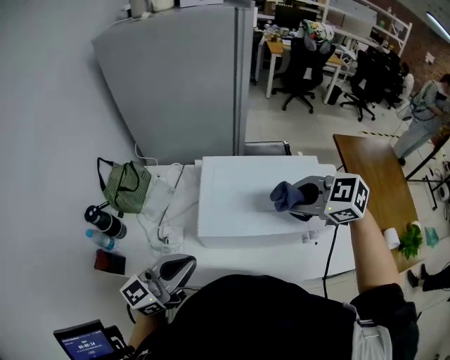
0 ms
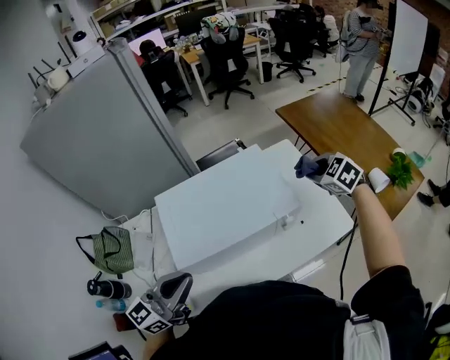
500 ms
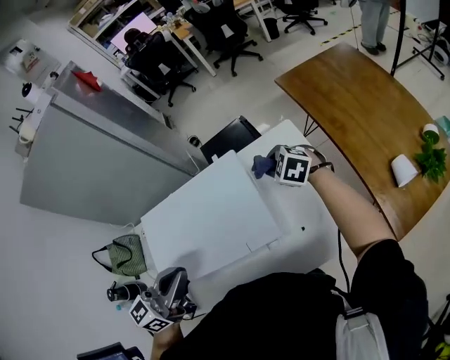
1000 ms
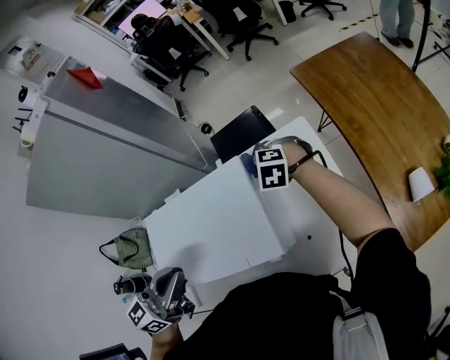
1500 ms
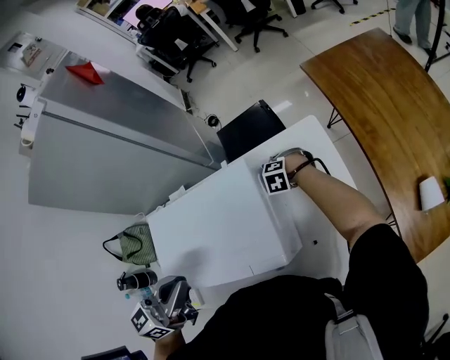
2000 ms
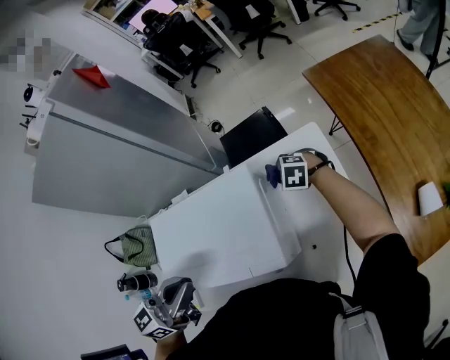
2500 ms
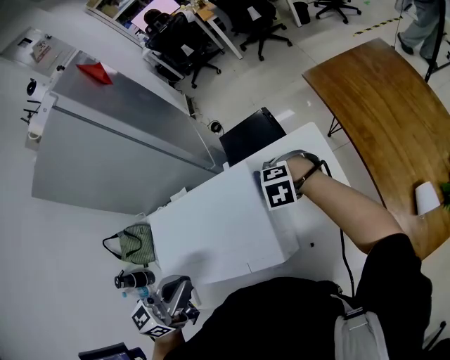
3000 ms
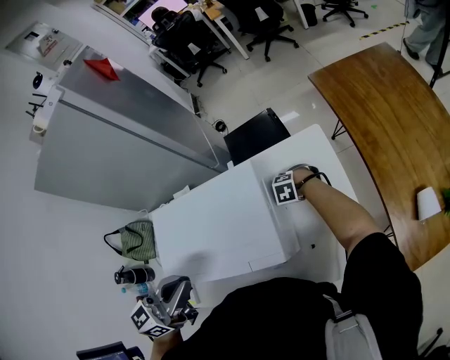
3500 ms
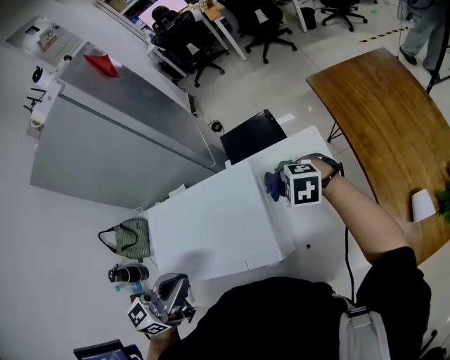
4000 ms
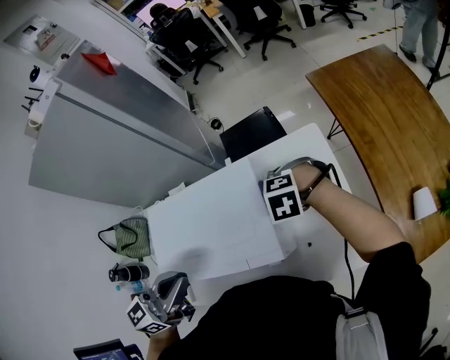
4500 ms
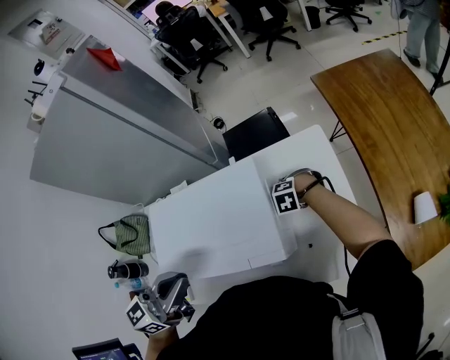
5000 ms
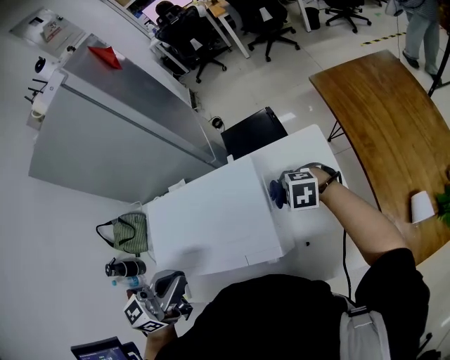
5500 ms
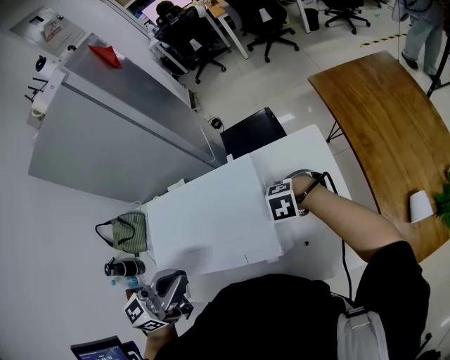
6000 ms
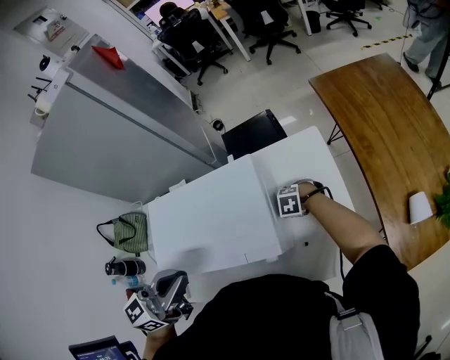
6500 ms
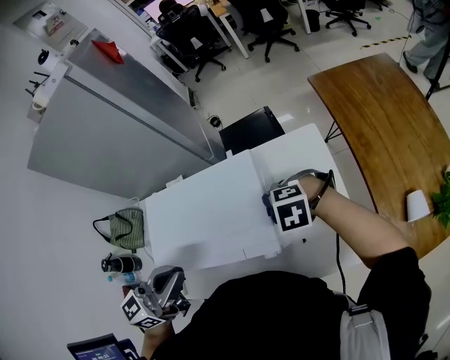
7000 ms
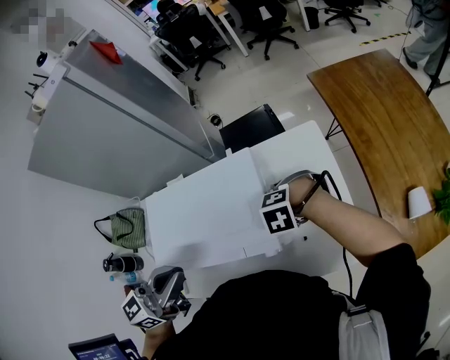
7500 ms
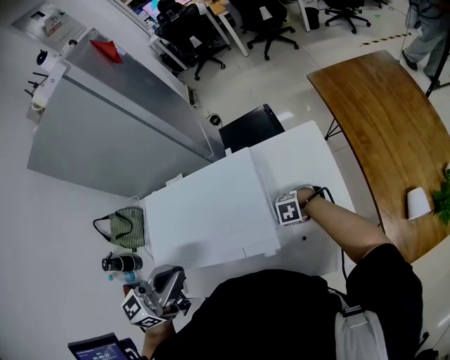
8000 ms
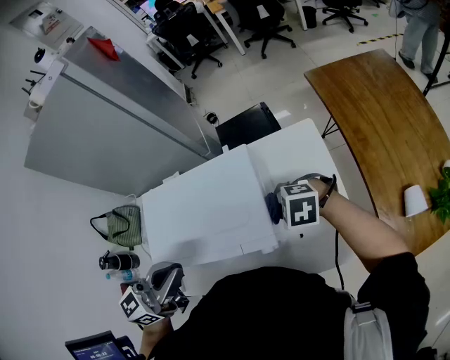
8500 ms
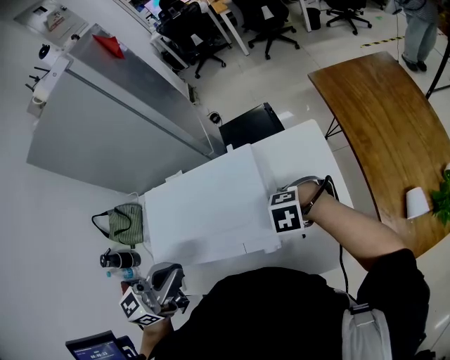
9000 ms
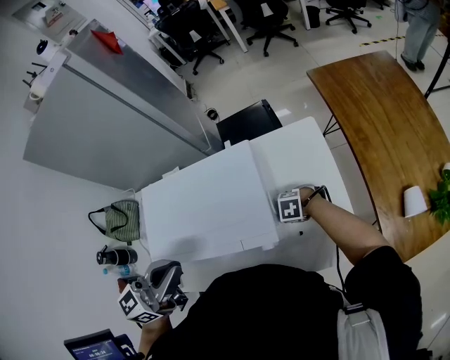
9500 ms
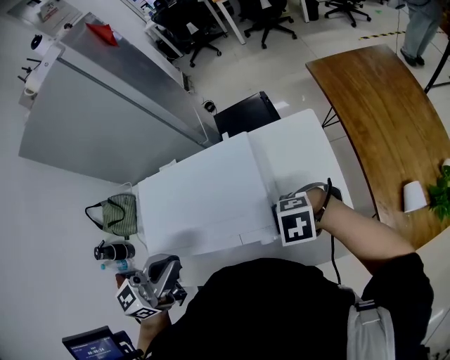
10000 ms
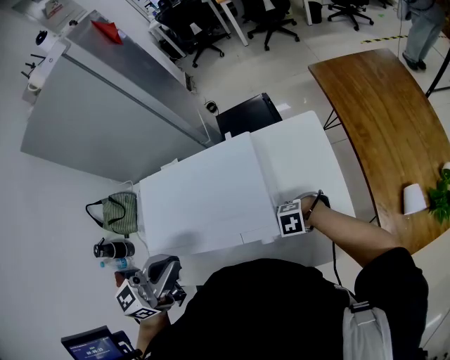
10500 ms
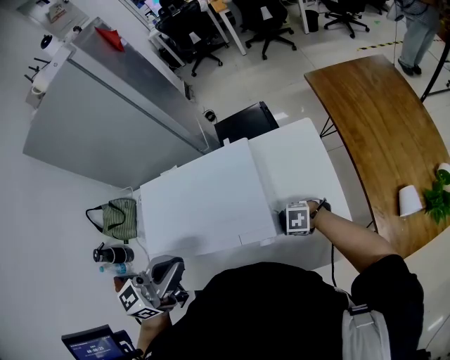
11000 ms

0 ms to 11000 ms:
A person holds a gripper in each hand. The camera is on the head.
0 ms to 2000 ms: The left gripper changes place by approximately 25 cm.

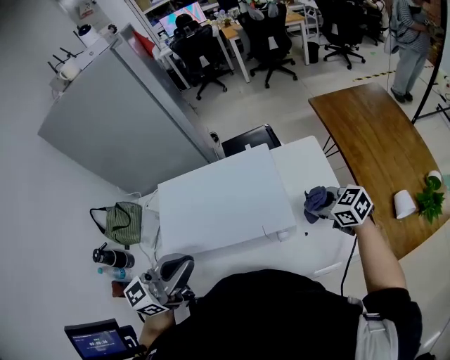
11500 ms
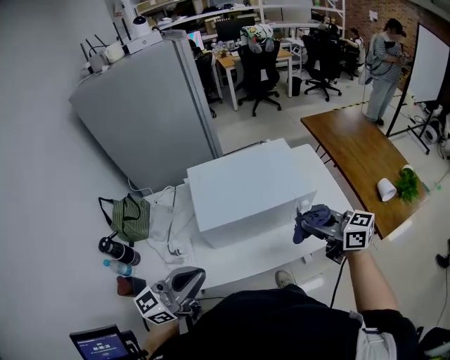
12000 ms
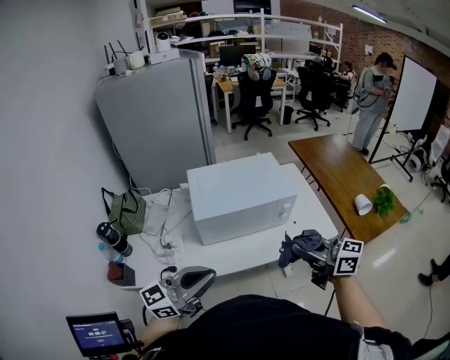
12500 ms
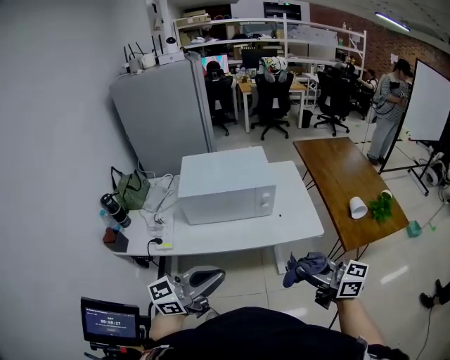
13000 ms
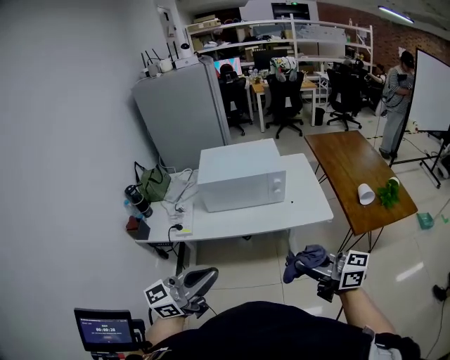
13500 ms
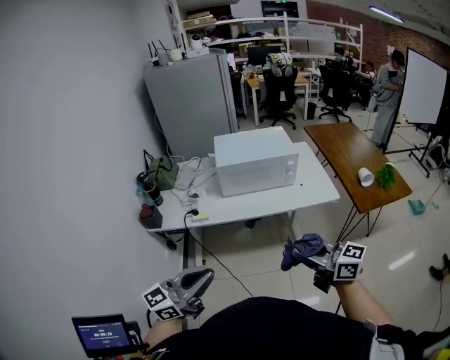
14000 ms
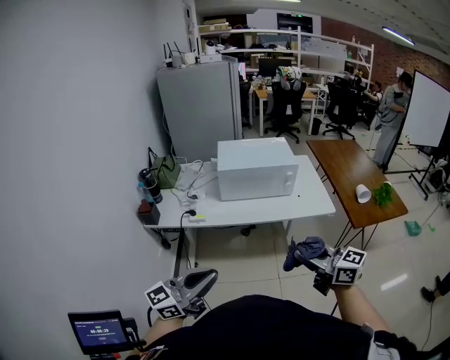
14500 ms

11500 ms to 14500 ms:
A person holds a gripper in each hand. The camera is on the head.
11500 ms to 13000 ms: The left gripper ends up about 35 cm from where it was.
13000 ms to 14500 ms: The left gripper shifts by about 25 cm.

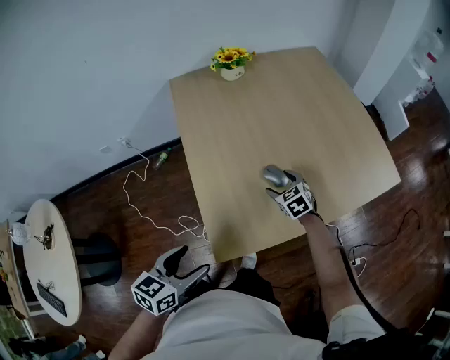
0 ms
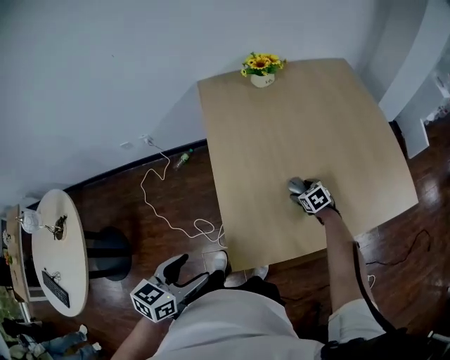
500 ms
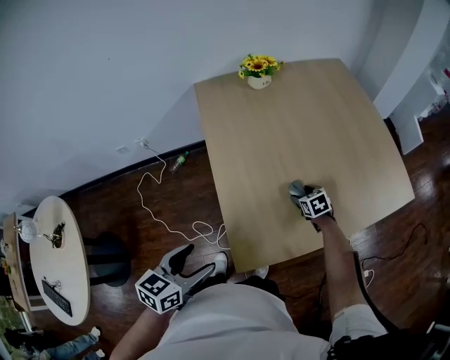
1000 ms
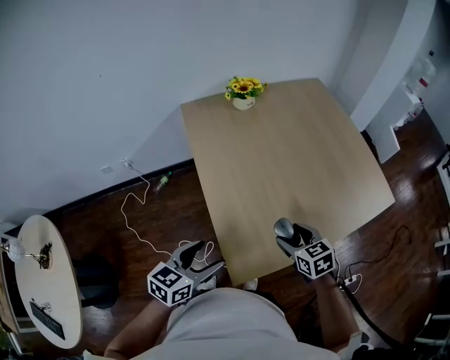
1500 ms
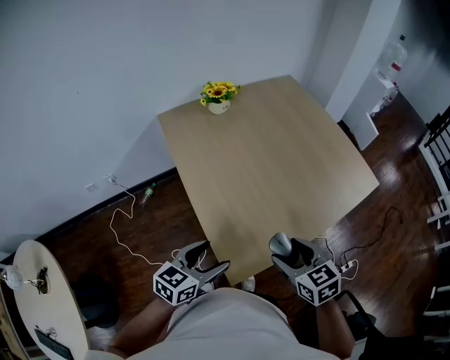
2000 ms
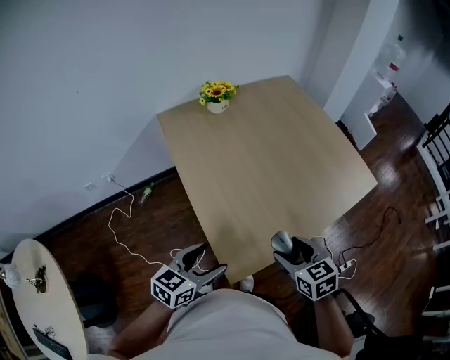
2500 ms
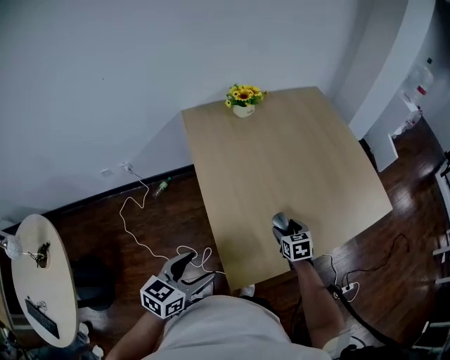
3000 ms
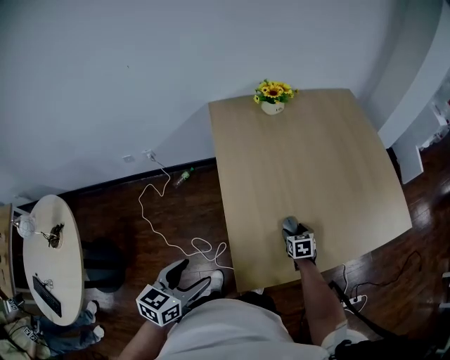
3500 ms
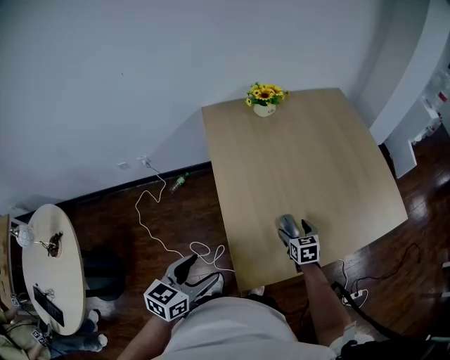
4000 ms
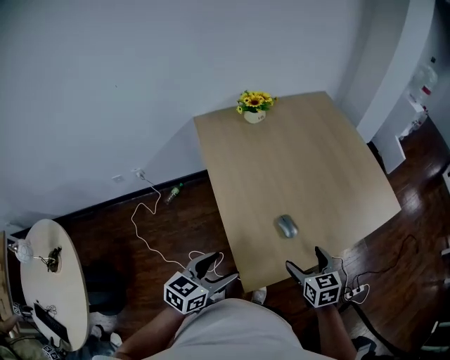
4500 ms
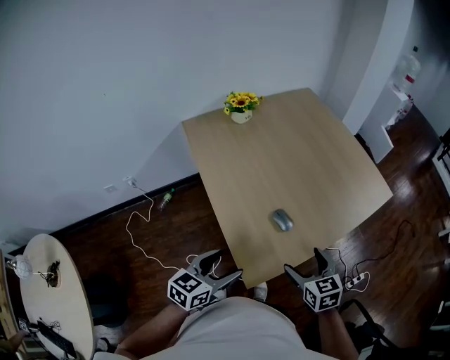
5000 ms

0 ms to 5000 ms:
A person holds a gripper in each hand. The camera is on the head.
0 ms to 2500 ms: The right gripper moves upward and backward, roughly 25 cm, and changes its angle by approximately 30 degrees, while the left gripper heads forward, covering approximately 5 cm, and rotates approximately 20 degrees.
2500 ms to 5000 ms: The left gripper moves approximately 10 cm to the left and comes back. Meanwhile the right gripper goes downward and returns, about 25 cm each way, and opens.

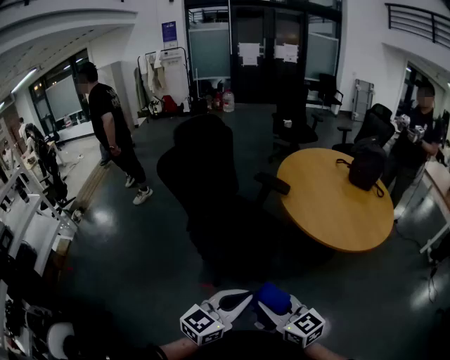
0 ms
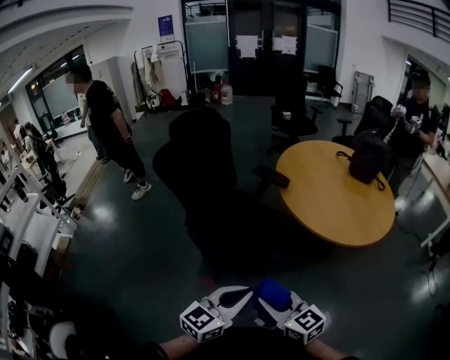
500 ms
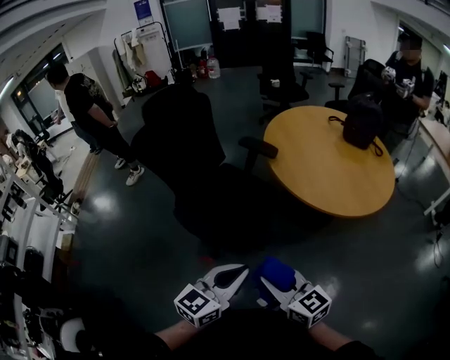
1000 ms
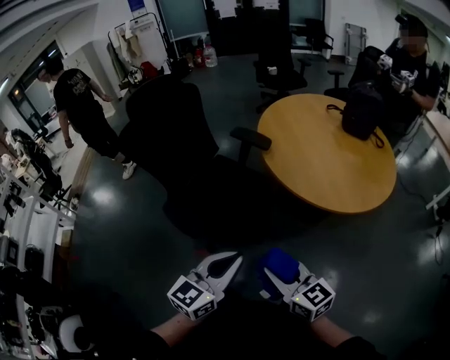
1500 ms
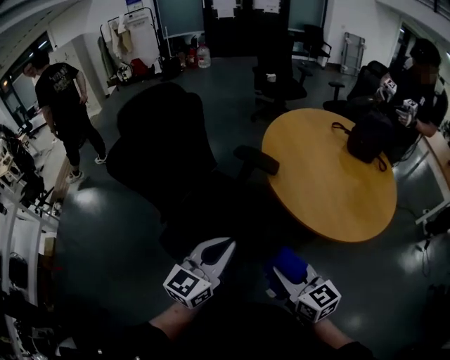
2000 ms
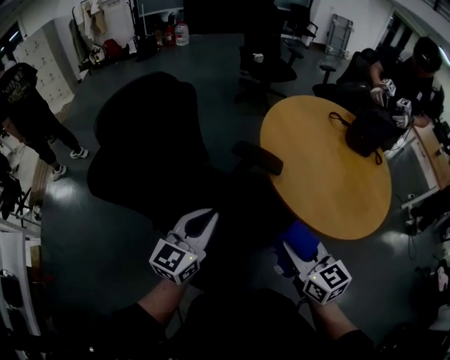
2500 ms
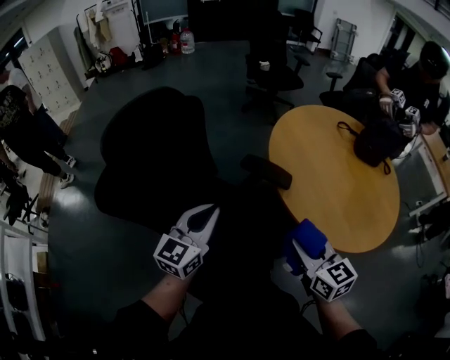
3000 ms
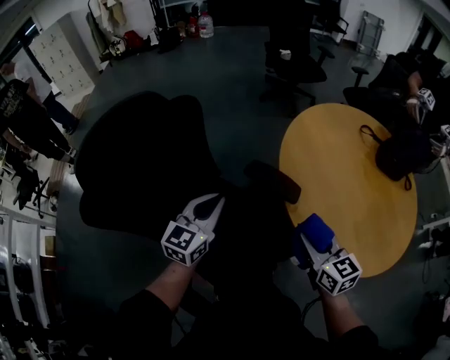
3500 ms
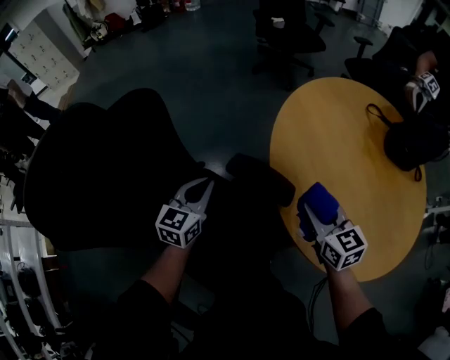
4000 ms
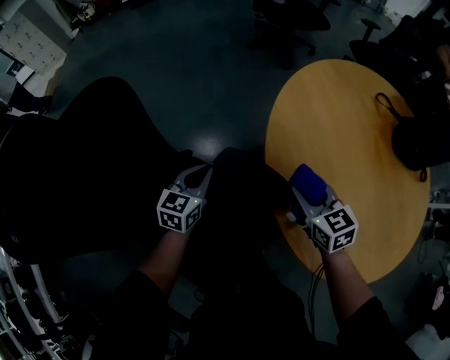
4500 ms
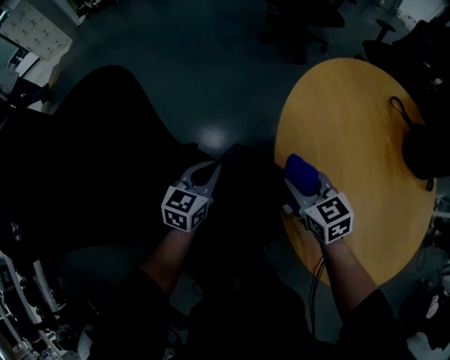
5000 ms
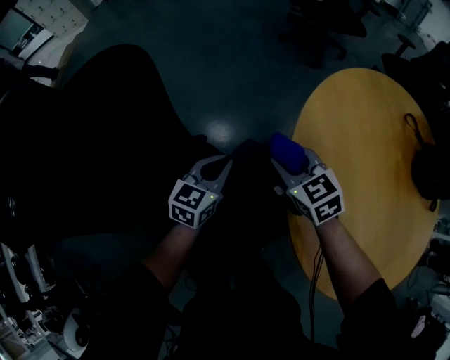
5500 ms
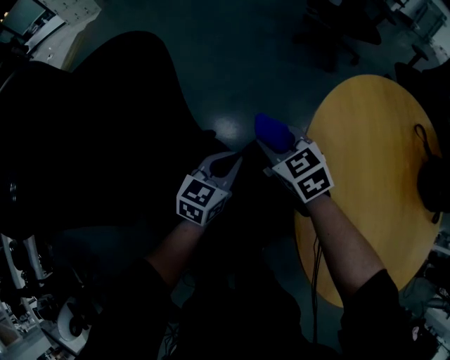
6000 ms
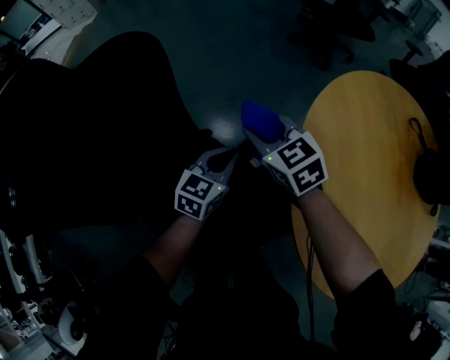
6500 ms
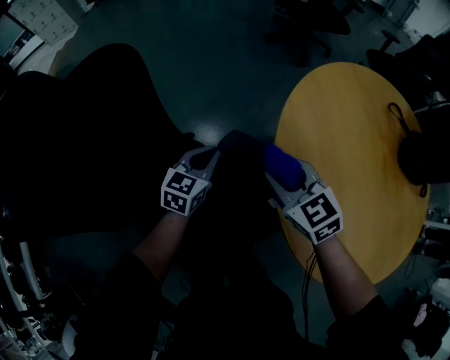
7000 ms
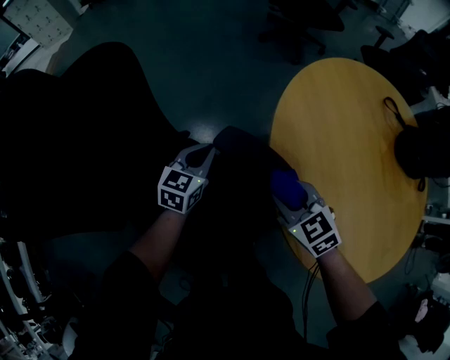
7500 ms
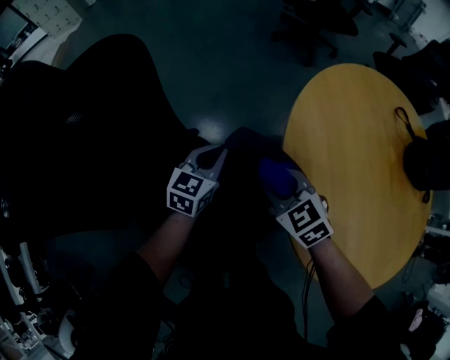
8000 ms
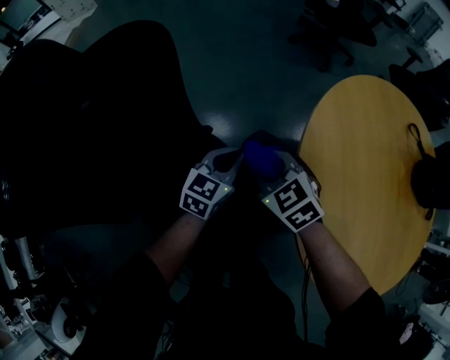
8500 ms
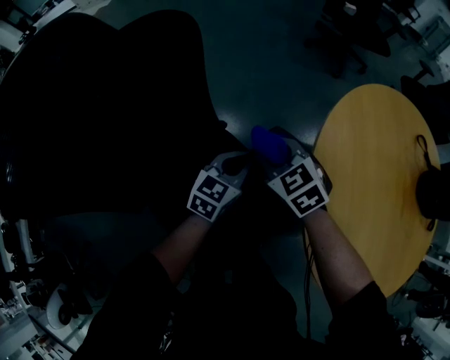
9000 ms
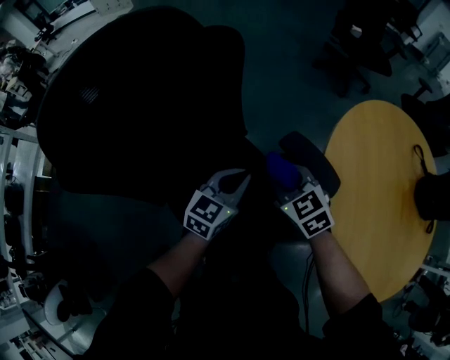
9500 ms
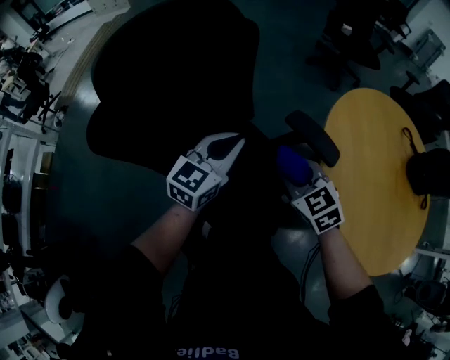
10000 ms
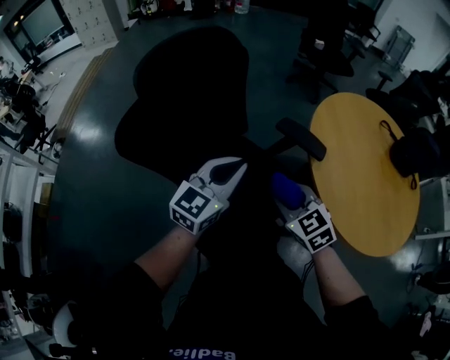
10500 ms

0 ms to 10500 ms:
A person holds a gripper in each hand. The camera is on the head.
0 ms to 2000 ms: The grippers both shift forward by some 25 cm.
2000 ms to 4000 ms: The two grippers travel together, forward, approximately 40 cm. The left gripper heads downward, covering roughly 15 cm, and turns by approximately 20 degrees.
4000 ms to 6500 ms: The left gripper travels downward and forward by roughly 10 cm, while the right gripper is displaced to the left and forward by about 30 cm, and turns by some 30 degrees.
6500 ms to 8500 ms: The right gripper moves backward, some 10 cm.
8500 ms to 10500 ms: The right gripper shifts roughly 30 cm backward and upward; the left gripper moves upward, backward and to the left, some 35 cm, and changes its angle by about 20 degrees.
